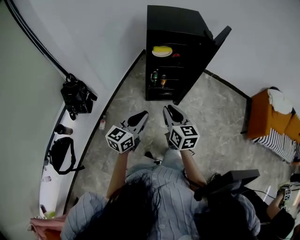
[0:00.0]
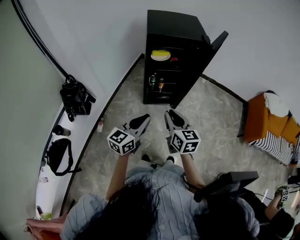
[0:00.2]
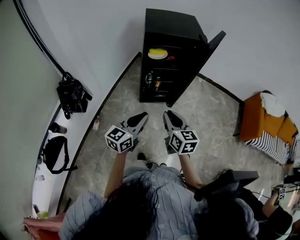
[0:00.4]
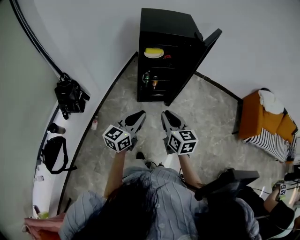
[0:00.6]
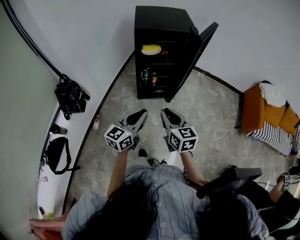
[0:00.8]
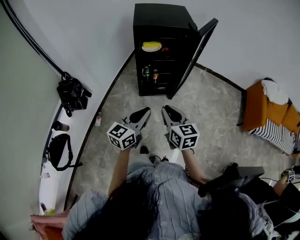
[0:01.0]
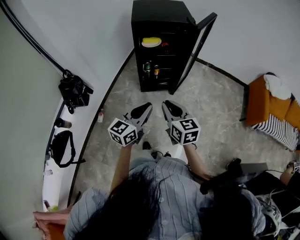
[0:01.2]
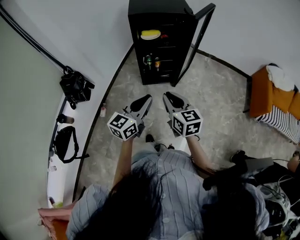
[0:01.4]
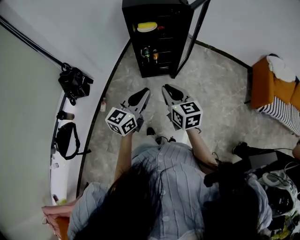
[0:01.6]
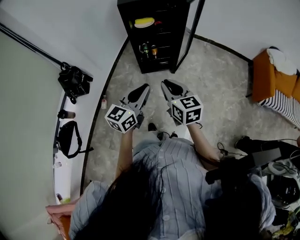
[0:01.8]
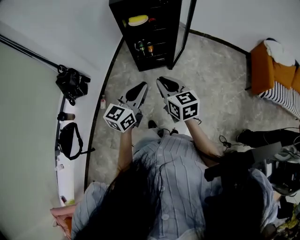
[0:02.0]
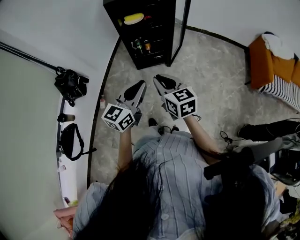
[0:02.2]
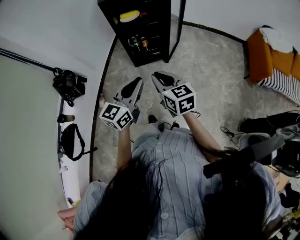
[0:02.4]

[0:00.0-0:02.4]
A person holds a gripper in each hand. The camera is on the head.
0:00.0 to 0:01.2: The right gripper goes some 10 cm backward and to the right. The left gripper moves to the right, about 10 cm.
0:01.2 to 0:02.4: The left gripper changes place by some 5 cm.

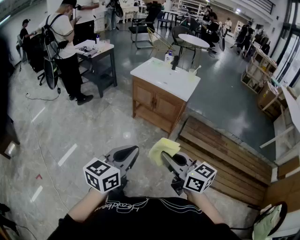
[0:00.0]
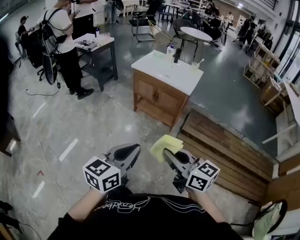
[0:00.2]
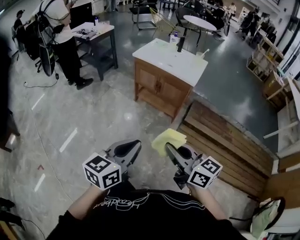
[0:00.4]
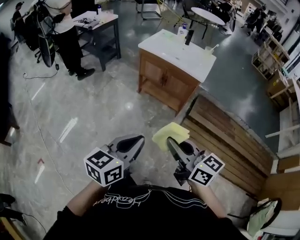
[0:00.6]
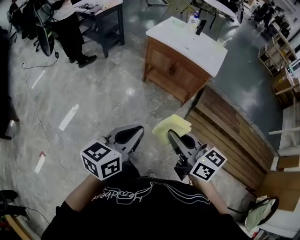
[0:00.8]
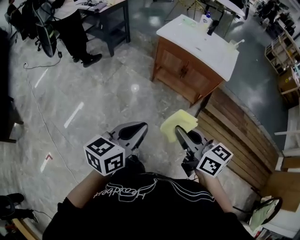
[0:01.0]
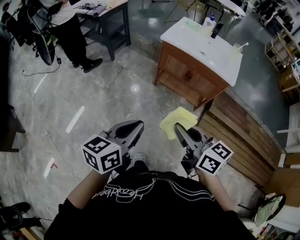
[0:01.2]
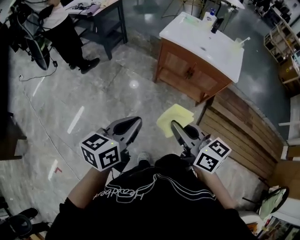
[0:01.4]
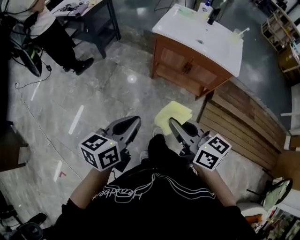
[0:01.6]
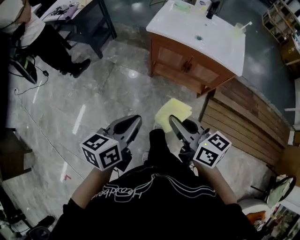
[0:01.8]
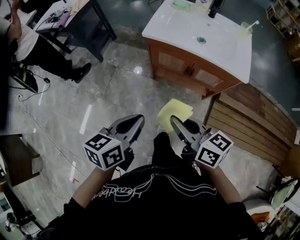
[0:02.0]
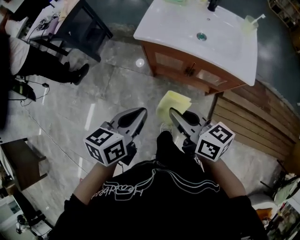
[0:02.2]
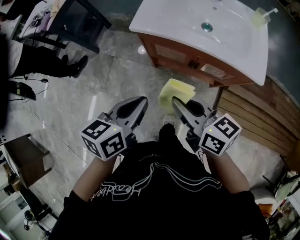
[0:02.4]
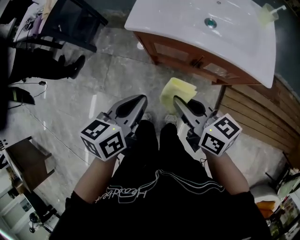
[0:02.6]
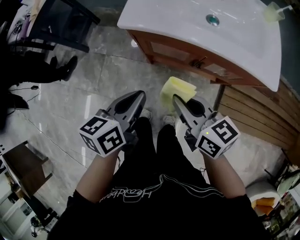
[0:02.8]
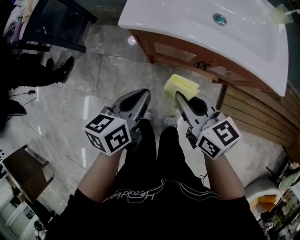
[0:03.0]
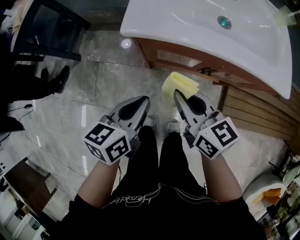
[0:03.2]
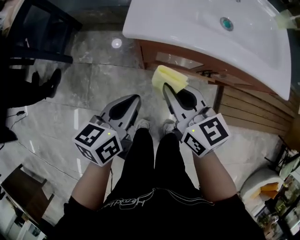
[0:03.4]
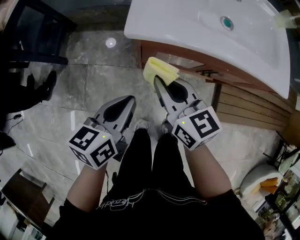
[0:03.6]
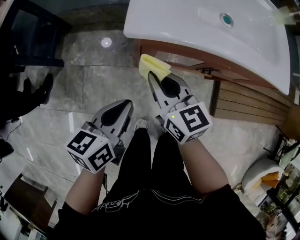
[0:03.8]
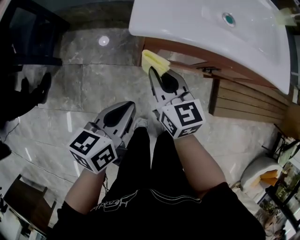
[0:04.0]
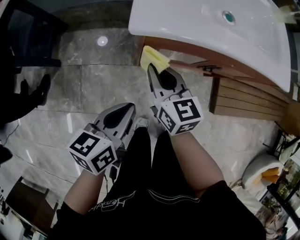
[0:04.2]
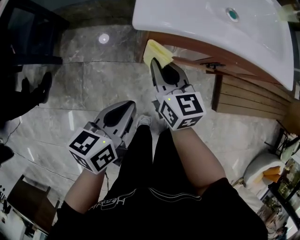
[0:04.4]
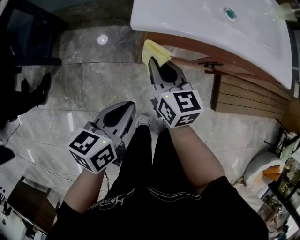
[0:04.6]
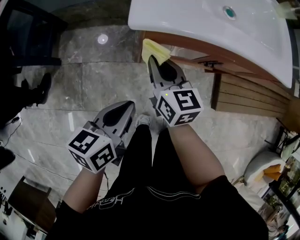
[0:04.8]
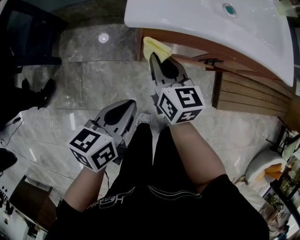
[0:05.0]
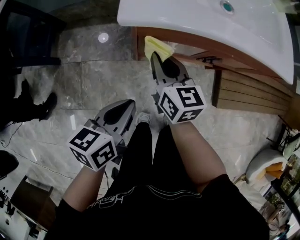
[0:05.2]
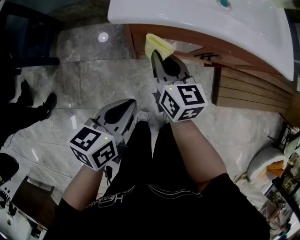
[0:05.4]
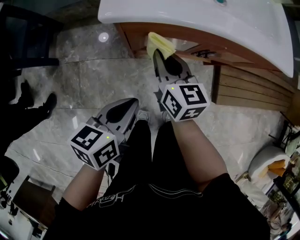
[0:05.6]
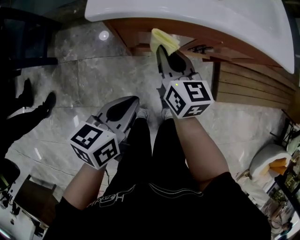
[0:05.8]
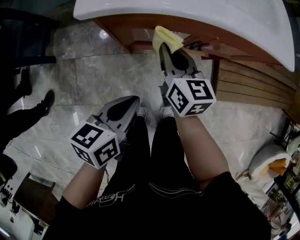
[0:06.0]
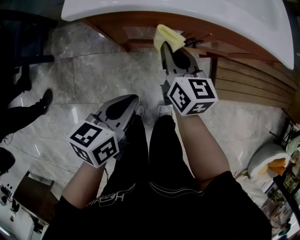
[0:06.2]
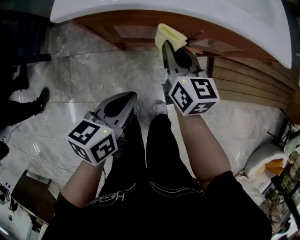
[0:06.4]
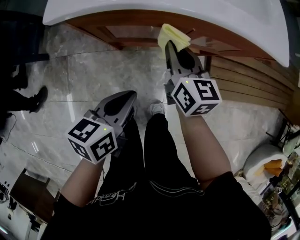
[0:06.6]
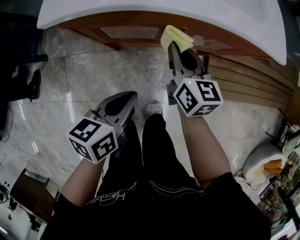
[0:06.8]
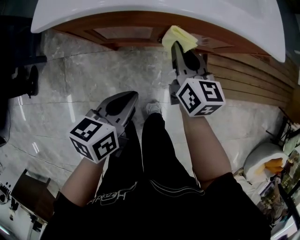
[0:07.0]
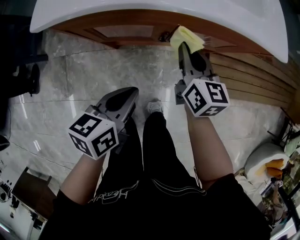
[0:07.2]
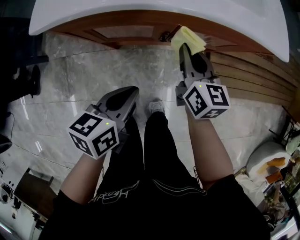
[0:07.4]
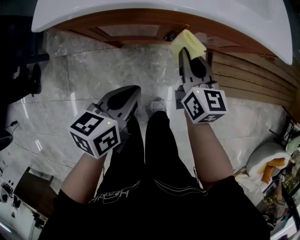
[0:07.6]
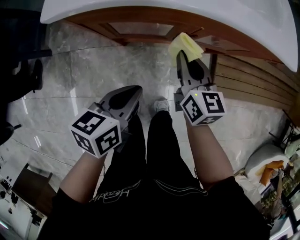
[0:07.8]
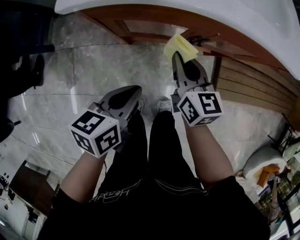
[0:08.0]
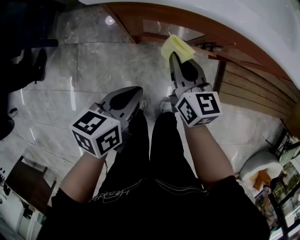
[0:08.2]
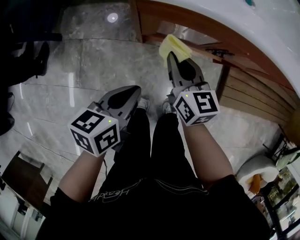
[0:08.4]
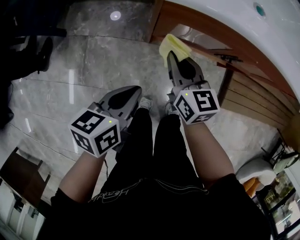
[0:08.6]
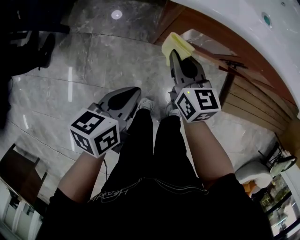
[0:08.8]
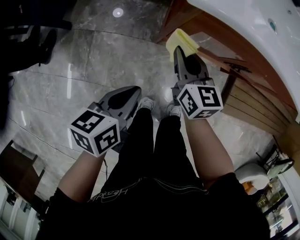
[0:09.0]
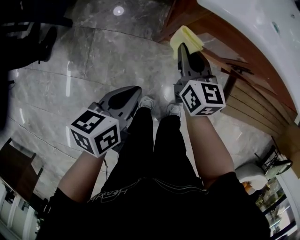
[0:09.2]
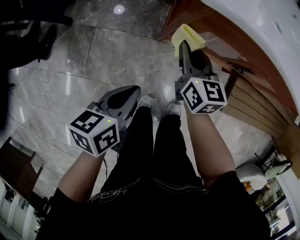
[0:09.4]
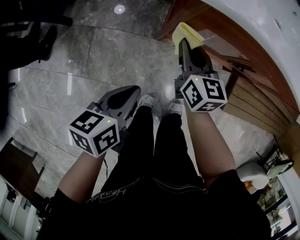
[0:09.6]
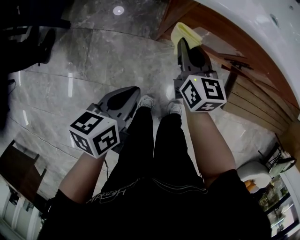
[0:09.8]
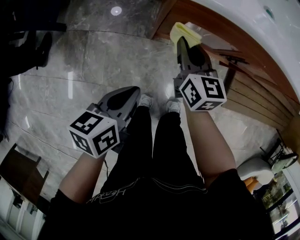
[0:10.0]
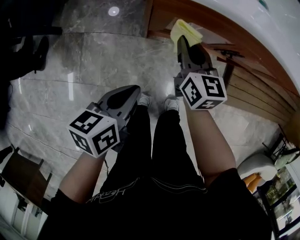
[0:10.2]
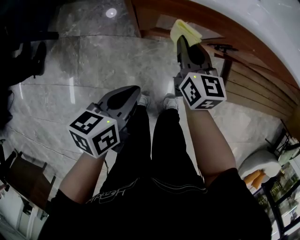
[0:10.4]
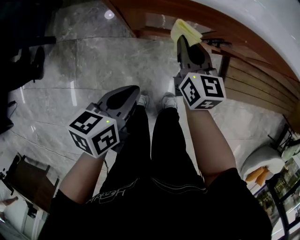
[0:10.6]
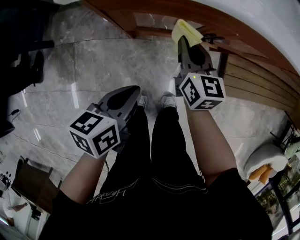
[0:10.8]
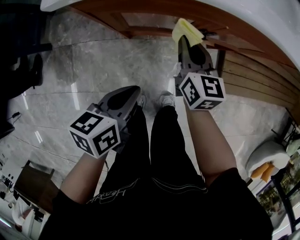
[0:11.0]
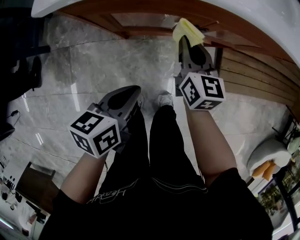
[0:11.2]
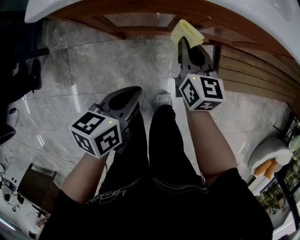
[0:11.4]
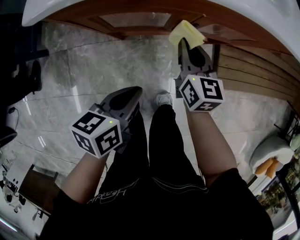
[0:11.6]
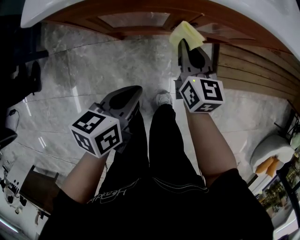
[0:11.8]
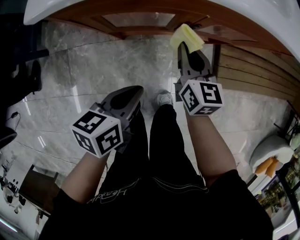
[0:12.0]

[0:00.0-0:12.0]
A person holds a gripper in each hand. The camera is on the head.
0:00.0 to 0:01.6: Both grippers move forward and to the left, about 40 cm.
0:01.6 to 0:03.0: The two grippers go roughly 40 cm forward and downward.
0:03.0 to 0:04.4: The left gripper shifts roughly 15 cm to the left and downward, while the right gripper moves to the left, forward and downward, roughly 20 cm, and swivels approximately 30 degrees.
0:04.4 to 0:06.0: The grippers both shift to the right by approximately 10 cm.
0:06.0 to 0:07.6: The right gripper shifts about 15 cm to the right. Meanwhile the left gripper travels to the right by about 10 cm.
0:07.6 to 0:09.0: Both grippers move to the left, some 25 cm.
0:09.0 to 0:10.4: Both grippers move to the right, roughly 10 cm.
0:10.4 to 0:12.0: The grippers both shift to the right by roughly 10 cm.

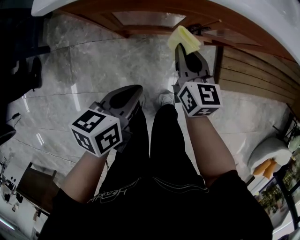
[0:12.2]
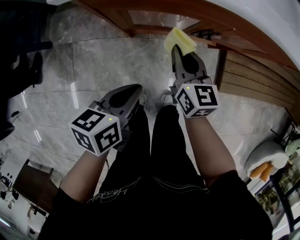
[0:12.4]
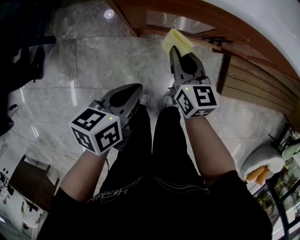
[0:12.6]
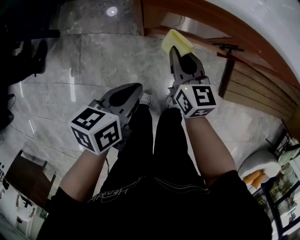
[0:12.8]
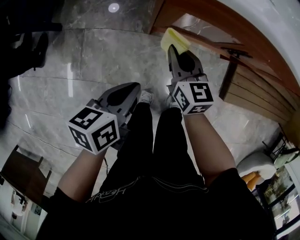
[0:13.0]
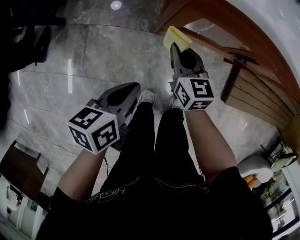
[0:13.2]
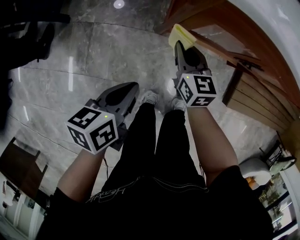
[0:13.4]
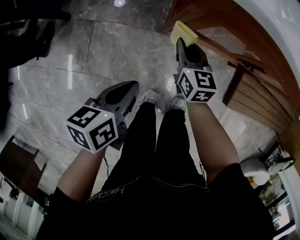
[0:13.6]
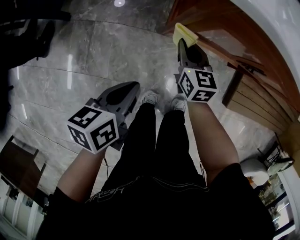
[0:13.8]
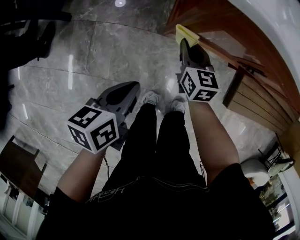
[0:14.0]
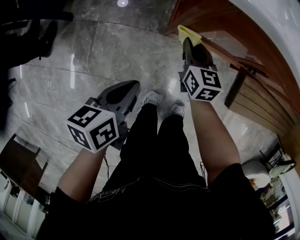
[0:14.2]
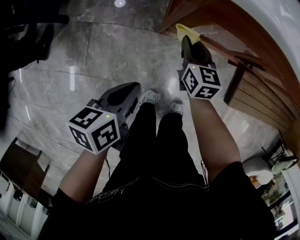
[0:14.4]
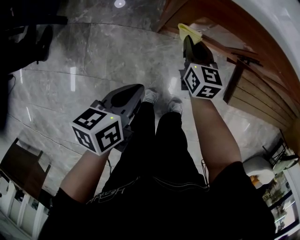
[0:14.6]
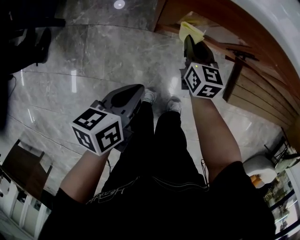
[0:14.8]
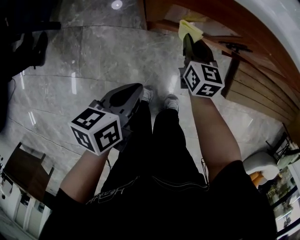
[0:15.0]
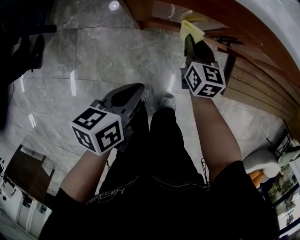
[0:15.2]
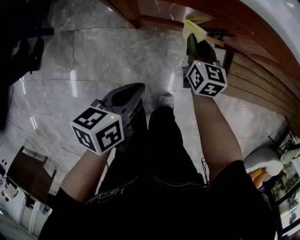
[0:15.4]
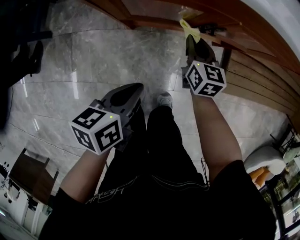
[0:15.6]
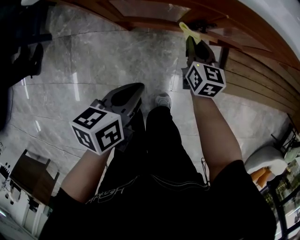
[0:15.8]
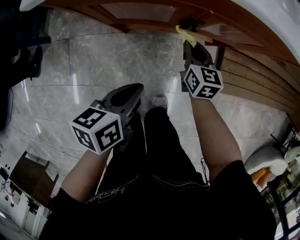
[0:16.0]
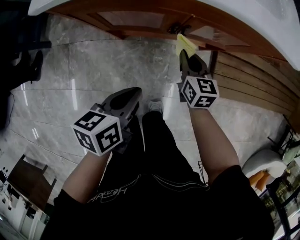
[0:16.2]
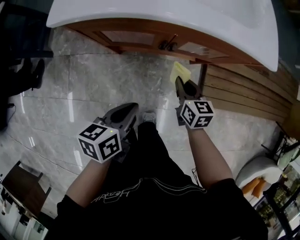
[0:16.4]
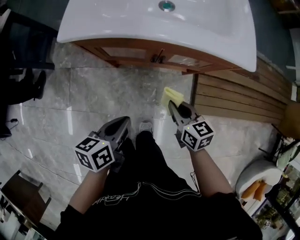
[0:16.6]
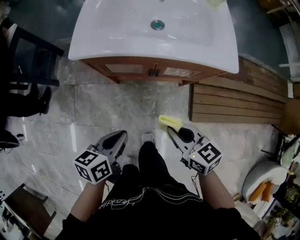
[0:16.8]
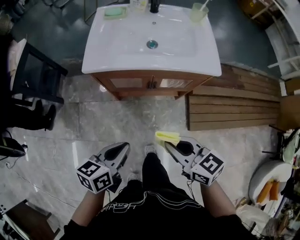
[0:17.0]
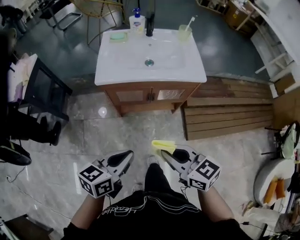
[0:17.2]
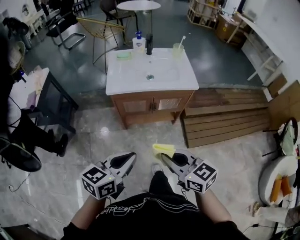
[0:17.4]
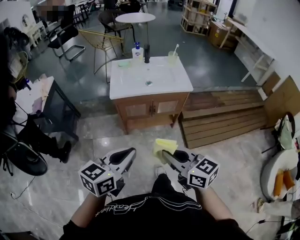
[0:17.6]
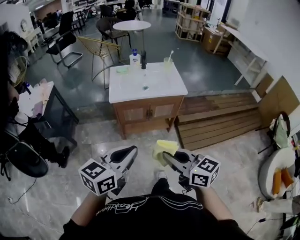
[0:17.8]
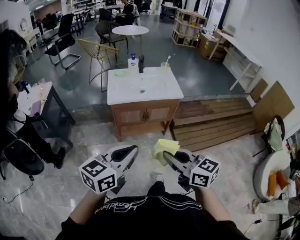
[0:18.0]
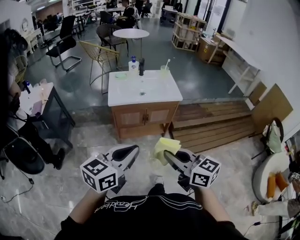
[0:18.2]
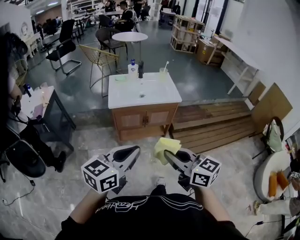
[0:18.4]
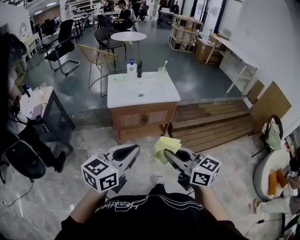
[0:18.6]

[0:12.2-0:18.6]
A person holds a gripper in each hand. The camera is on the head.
0:12.2 to 0:13.8: The right gripper moves to the left and downward, about 20 cm. The left gripper moves to the left, approximately 20 cm.
0:13.8 to 0:15.4: Both grippers move to the right, about 20 cm.
0:15.4 to 0:17.0: The left gripper is displaced upward by approximately 25 cm, while the right gripper is displaced upward and backward by roughly 40 cm, and swivels about 30 degrees.
0:17.0 to 0:18.6: The right gripper shifts some 35 cm backward and upward, and rotates some 30 degrees. The left gripper shifts about 40 cm upward and backward, and swivels approximately 40 degrees.

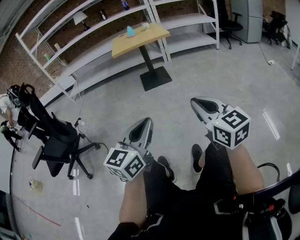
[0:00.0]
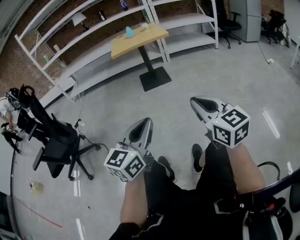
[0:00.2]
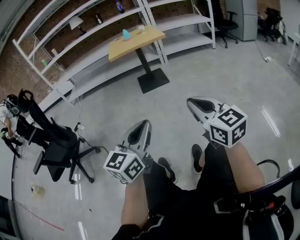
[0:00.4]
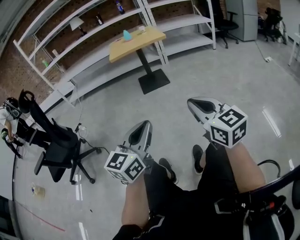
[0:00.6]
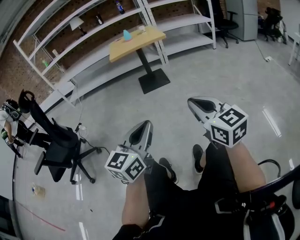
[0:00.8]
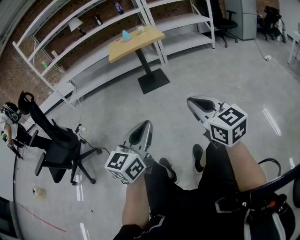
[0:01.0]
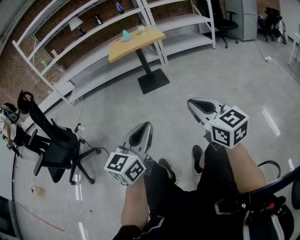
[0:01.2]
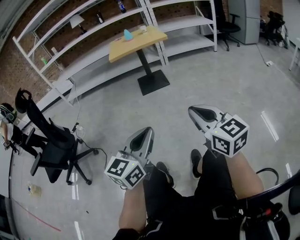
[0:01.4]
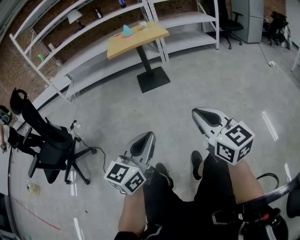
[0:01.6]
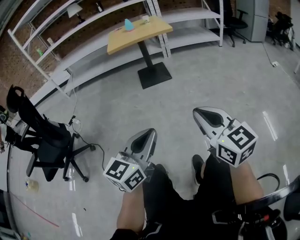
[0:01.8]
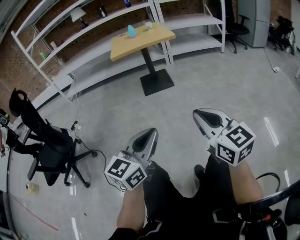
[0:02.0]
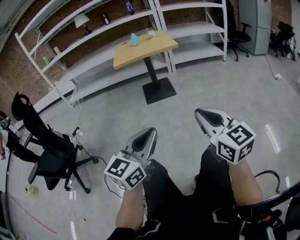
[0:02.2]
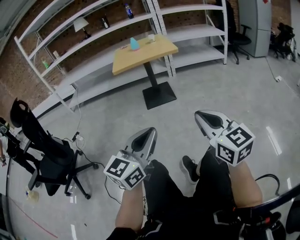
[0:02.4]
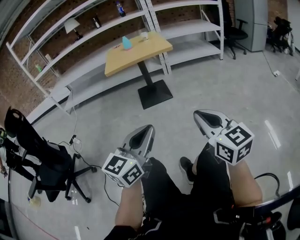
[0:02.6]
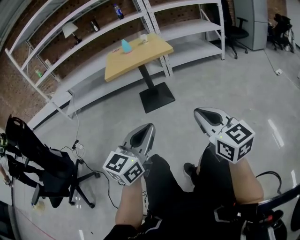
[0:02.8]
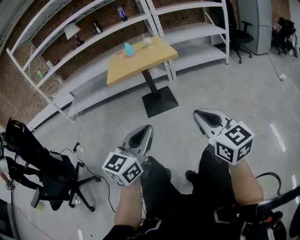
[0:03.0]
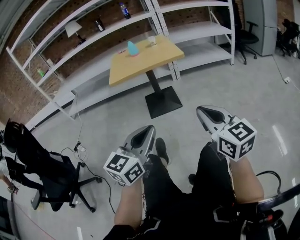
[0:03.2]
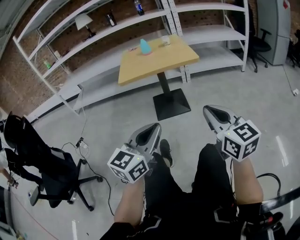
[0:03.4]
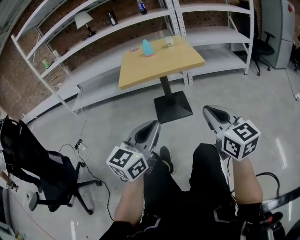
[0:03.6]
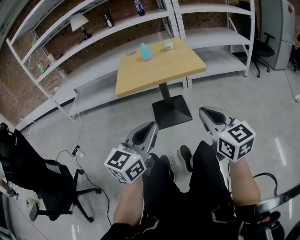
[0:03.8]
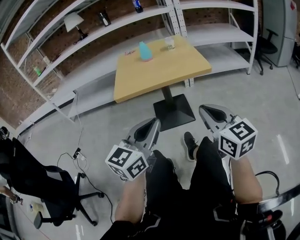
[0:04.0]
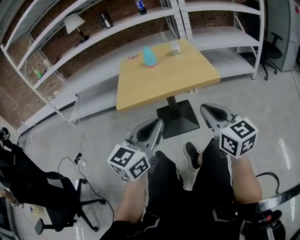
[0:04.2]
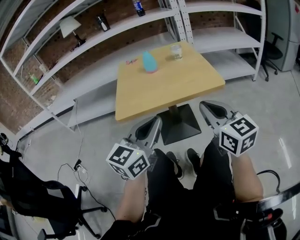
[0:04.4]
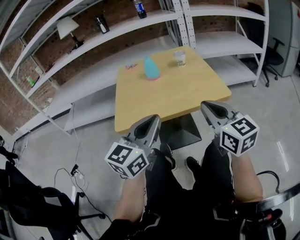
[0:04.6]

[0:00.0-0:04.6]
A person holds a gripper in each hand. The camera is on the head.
0:00.0 to 0:01.6: The grippers make only small movements.
0:01.6 to 0:03.0: The two grippers go roughly 30 cm forward.
0:03.0 to 0:04.6: The two grippers travel together, forward, approximately 50 cm.
